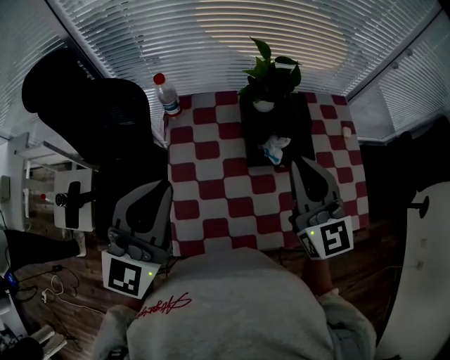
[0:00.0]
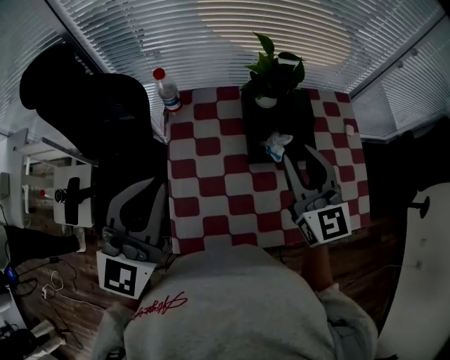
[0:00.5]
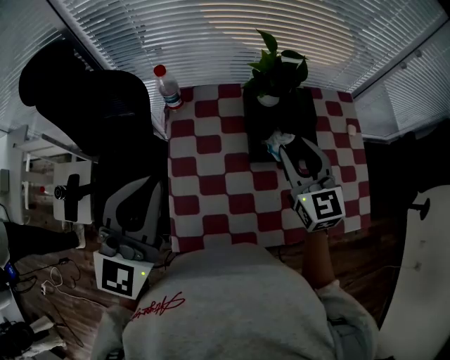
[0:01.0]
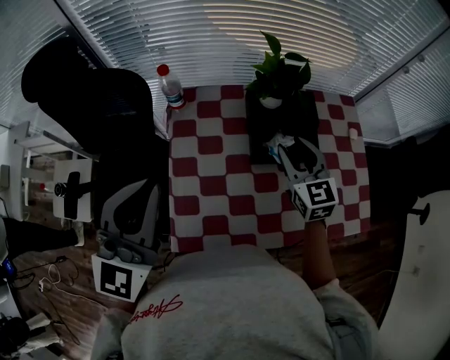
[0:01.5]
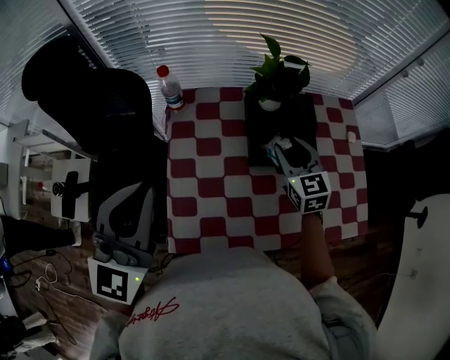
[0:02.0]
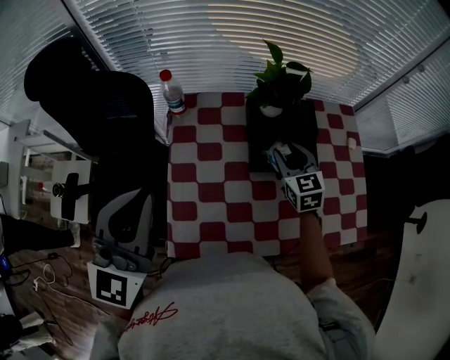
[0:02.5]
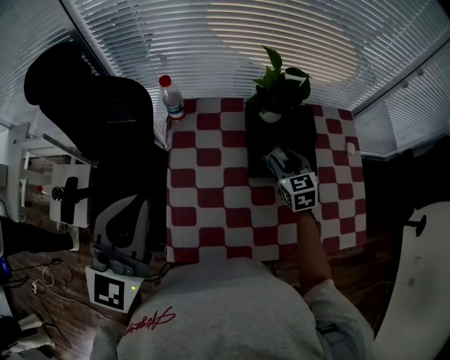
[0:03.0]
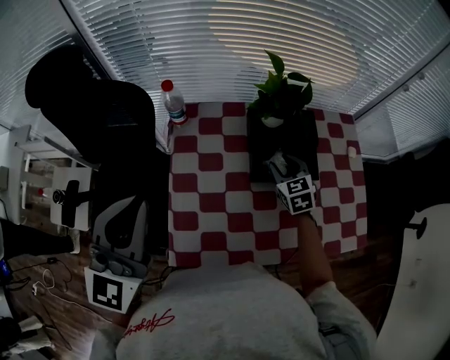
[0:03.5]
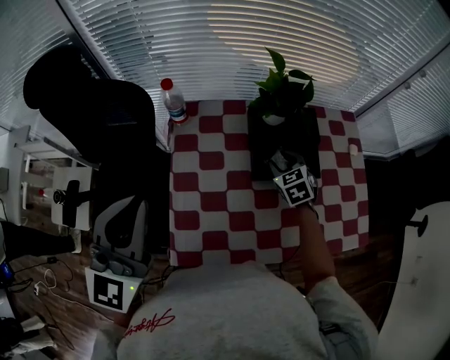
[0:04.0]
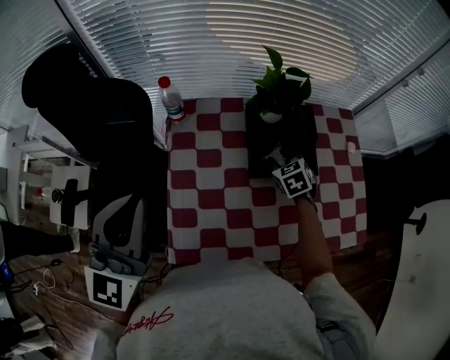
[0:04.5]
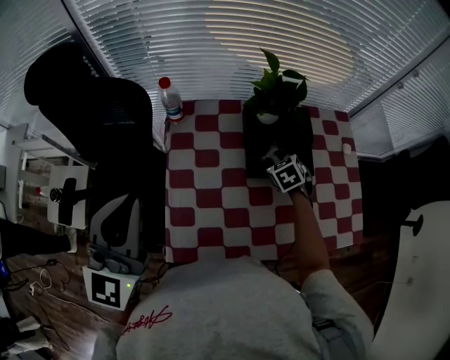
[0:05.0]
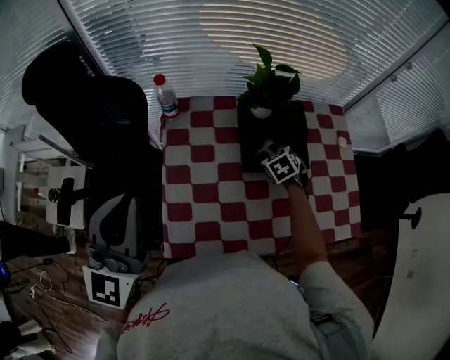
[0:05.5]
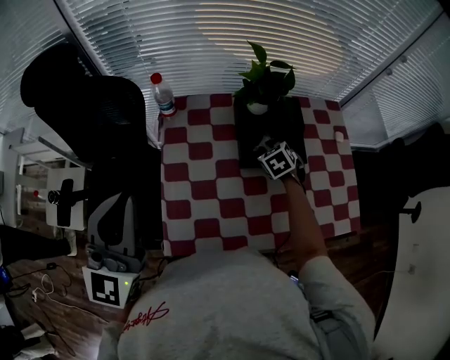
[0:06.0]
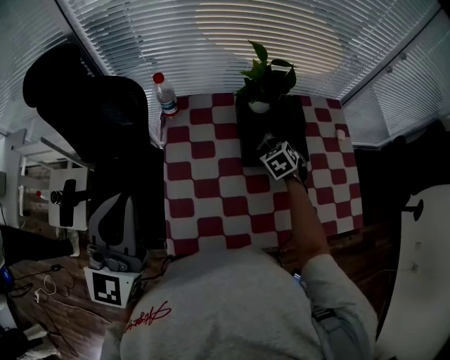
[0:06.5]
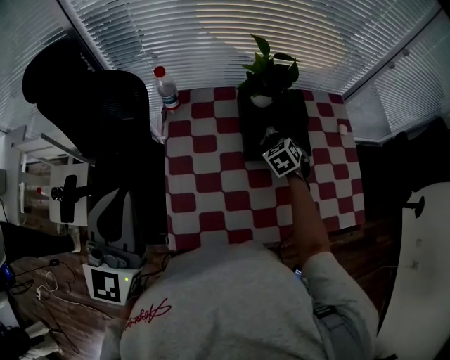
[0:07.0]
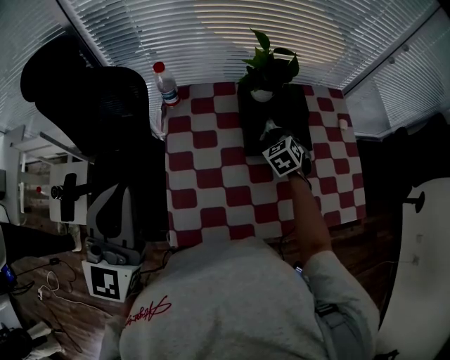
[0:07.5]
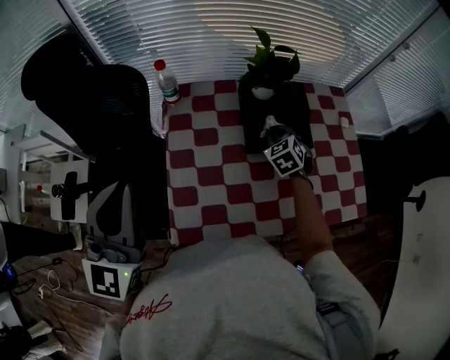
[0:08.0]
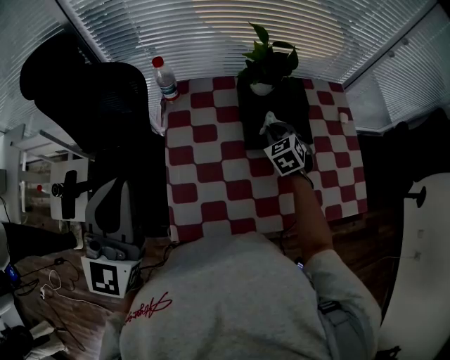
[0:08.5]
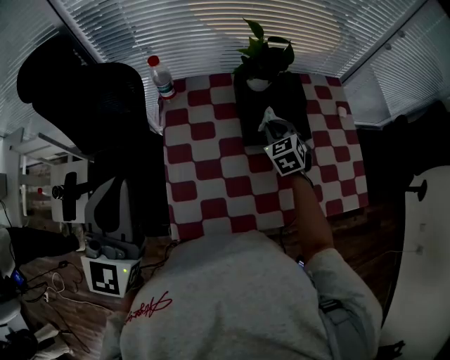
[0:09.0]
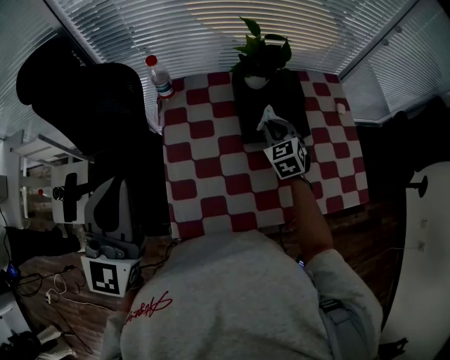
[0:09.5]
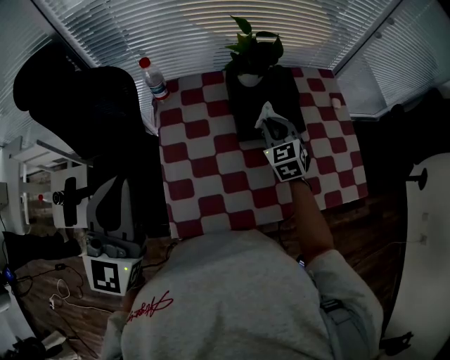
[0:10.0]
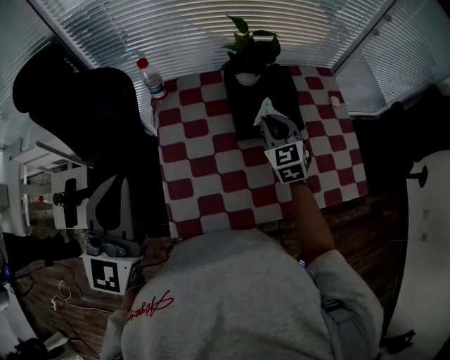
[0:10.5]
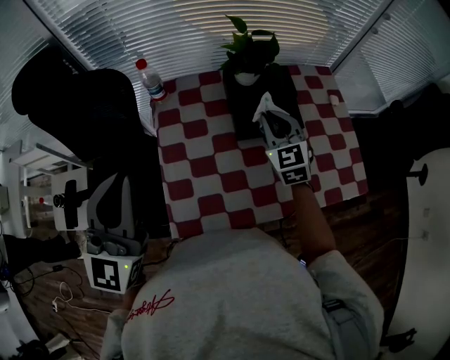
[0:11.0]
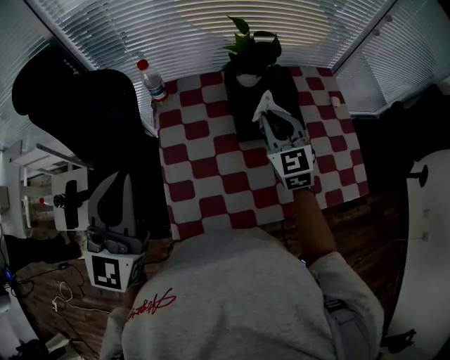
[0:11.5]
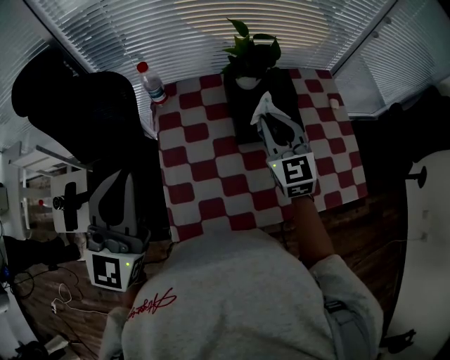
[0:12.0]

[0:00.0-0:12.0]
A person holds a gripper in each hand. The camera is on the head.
0:00.0 to 0:02.0: The right gripper is displaced downward and forward by some 20 cm, turns by approximately 20 degrees, and opens up.
0:02.0 to 0:04.0: The right gripper shifts roughly 10 cm downward, and swivels some 20 degrees.
0:04.0 to 0:08.0: There are only small adjustments of the grippers.
0:08.0 to 0:10.0: The right gripper heads upward, covering about 5 cm.
0:10.0 to 0:12.0: The right gripper travels upward by some 10 cm.

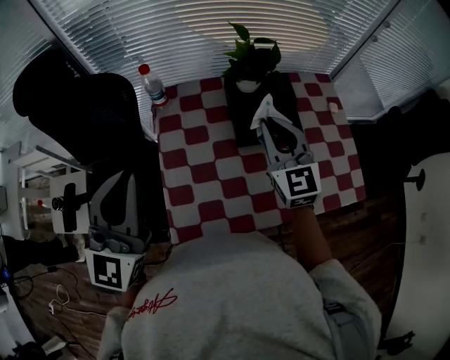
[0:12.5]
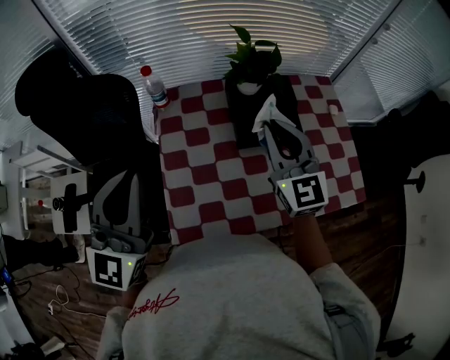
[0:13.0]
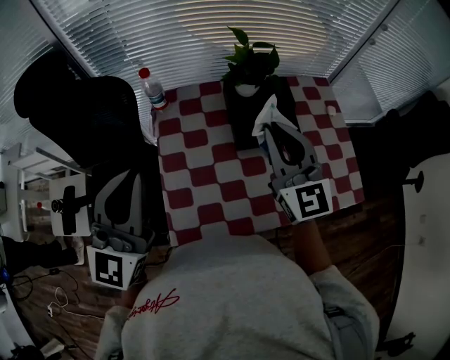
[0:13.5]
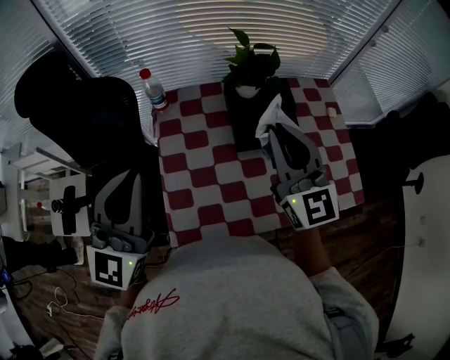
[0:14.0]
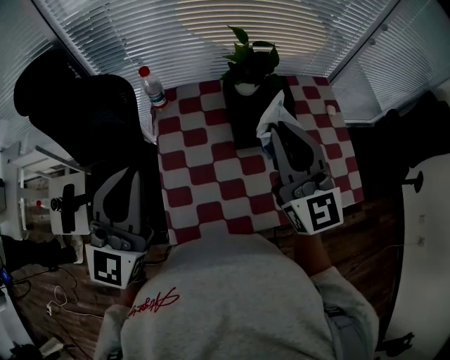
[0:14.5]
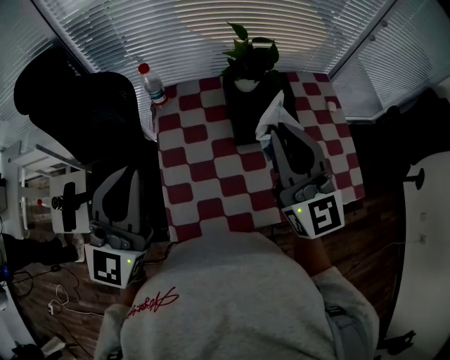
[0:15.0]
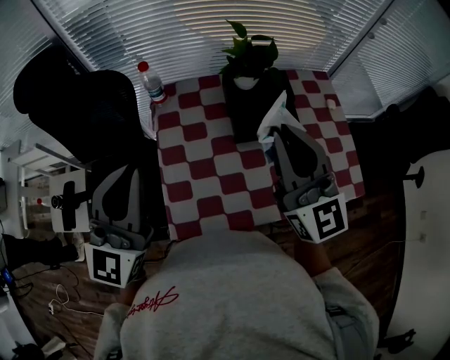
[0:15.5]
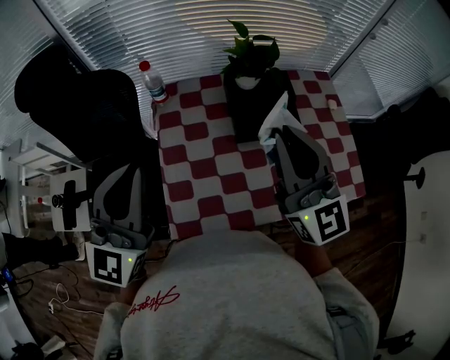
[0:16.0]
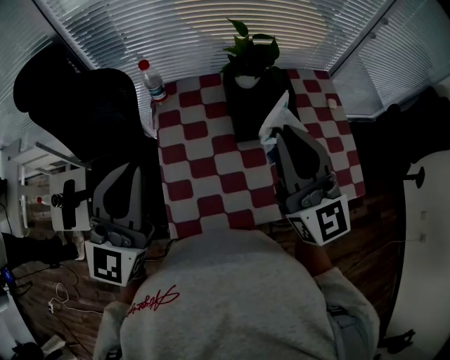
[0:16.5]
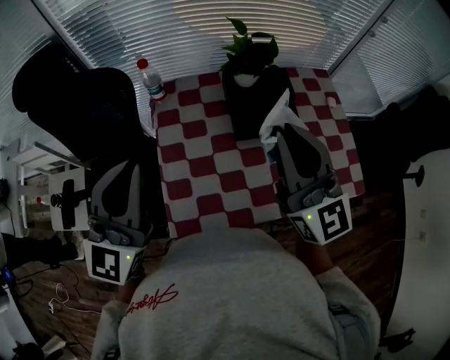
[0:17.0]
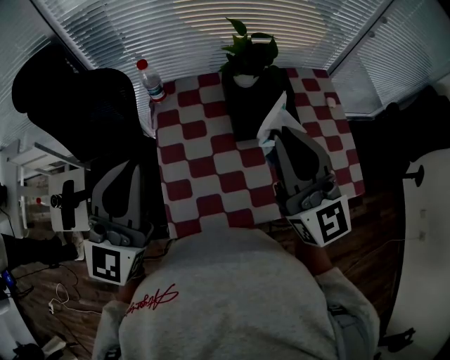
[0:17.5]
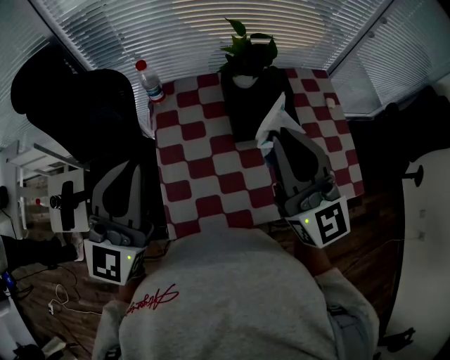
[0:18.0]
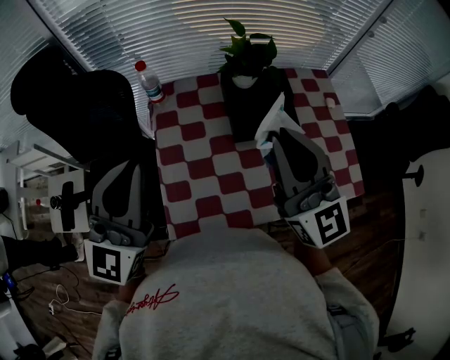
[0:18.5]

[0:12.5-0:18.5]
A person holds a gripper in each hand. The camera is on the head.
0:12.5 to 0:14.5: The right gripper is displaced upward and backward by approximately 10 cm.
0:14.5 to 0:16.5: The grippers make only small movements.
0:16.5 to 0:18.5: Both grippers stay about where they are.

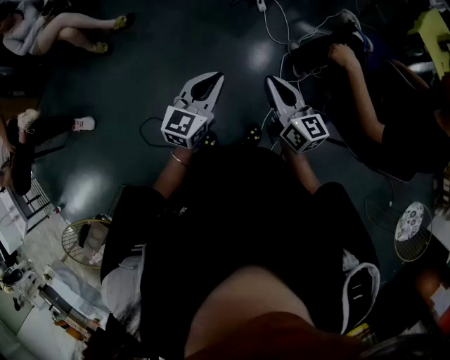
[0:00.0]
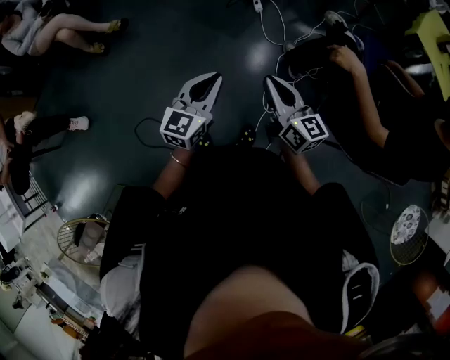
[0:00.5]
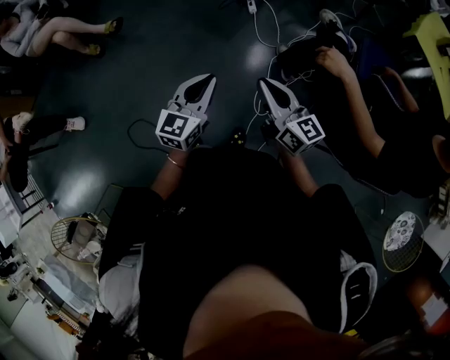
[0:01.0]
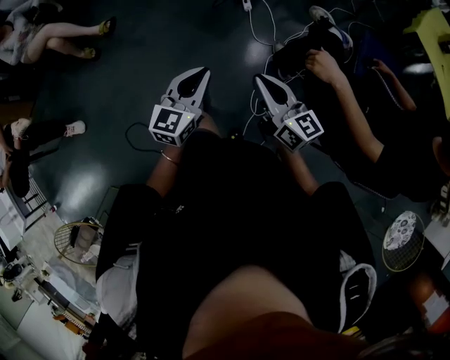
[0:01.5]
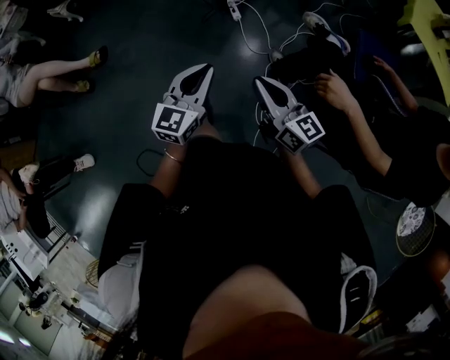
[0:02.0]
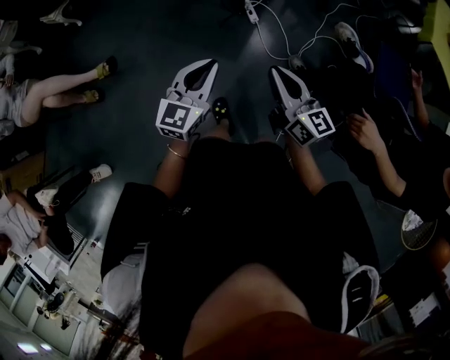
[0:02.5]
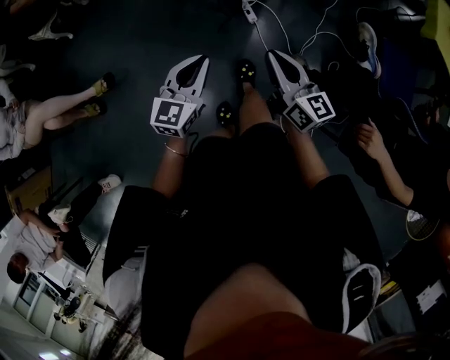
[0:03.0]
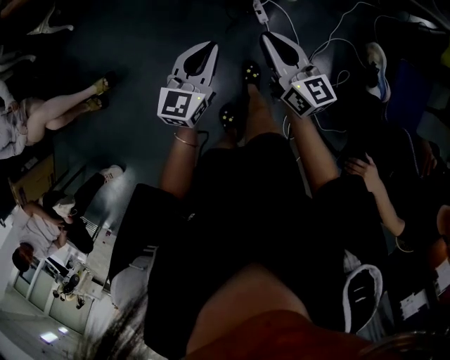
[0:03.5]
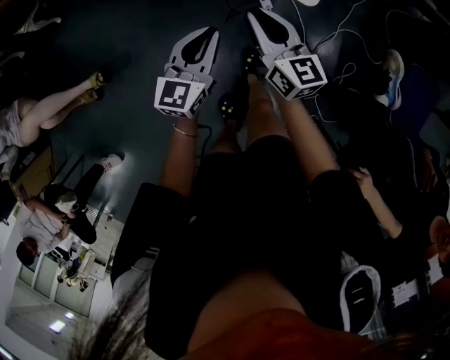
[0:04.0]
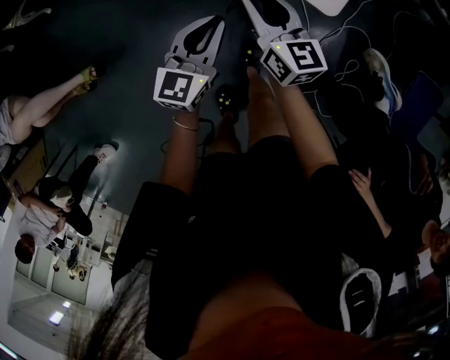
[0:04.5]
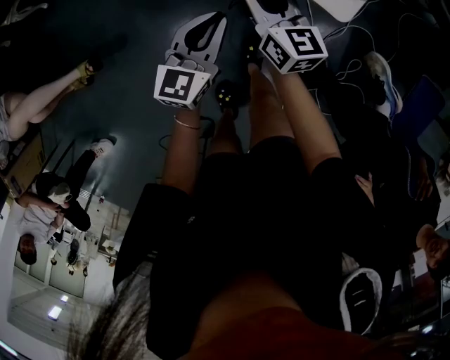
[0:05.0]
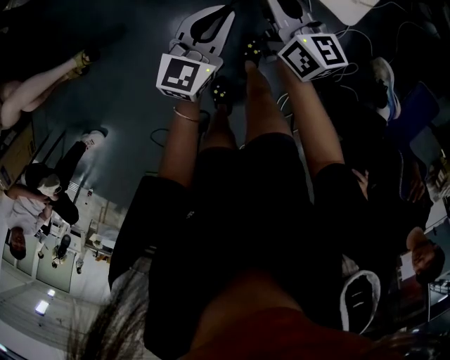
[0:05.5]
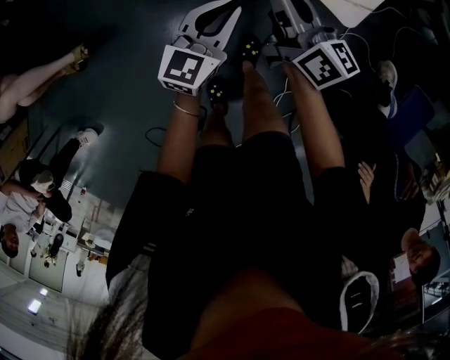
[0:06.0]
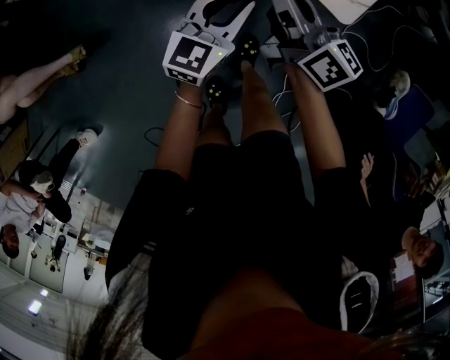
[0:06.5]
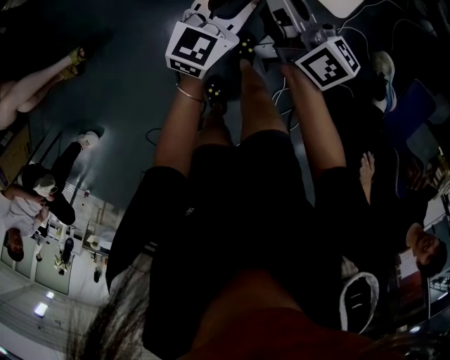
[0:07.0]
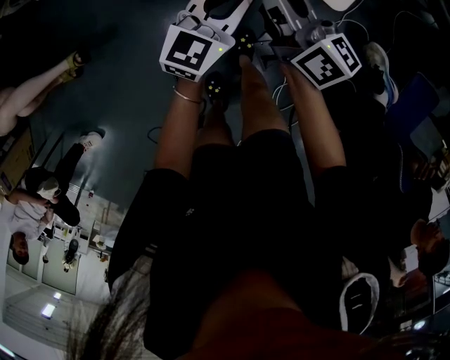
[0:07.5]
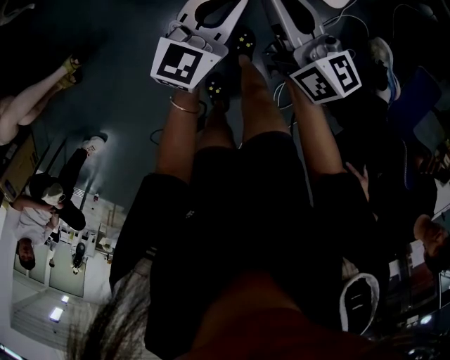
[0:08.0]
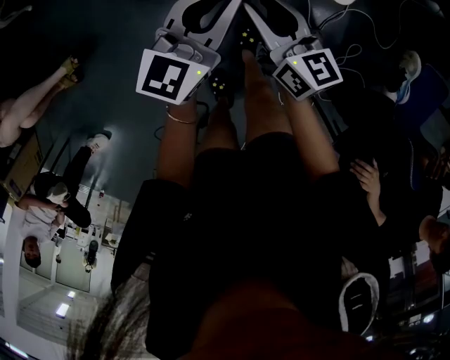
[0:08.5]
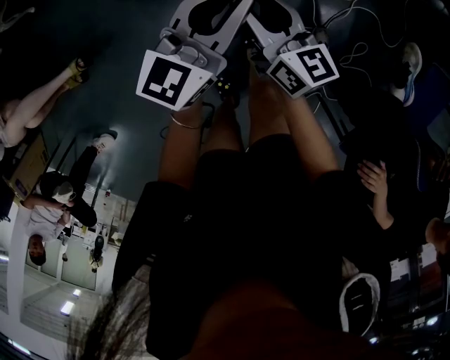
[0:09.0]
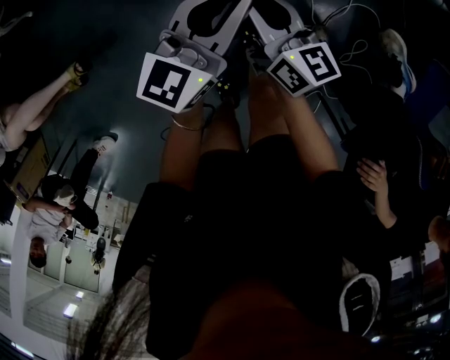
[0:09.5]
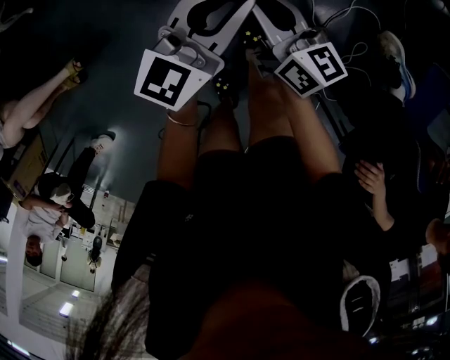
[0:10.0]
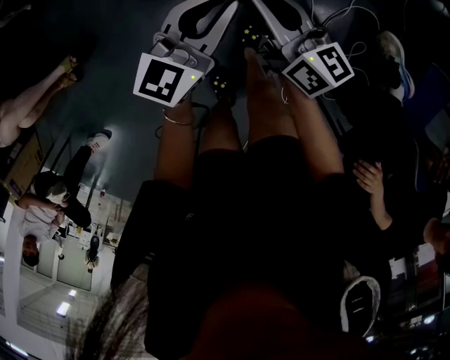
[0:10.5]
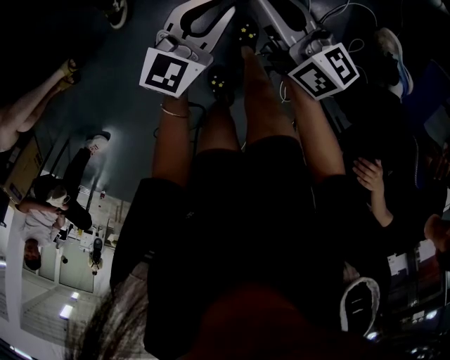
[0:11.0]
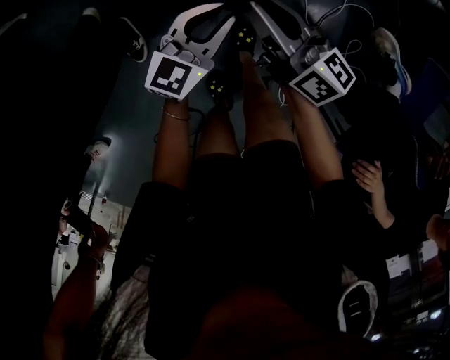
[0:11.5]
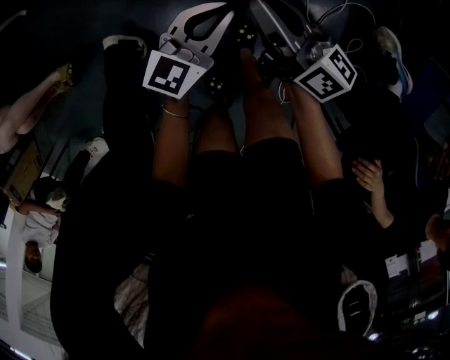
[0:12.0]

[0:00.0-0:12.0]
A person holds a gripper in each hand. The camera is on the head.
0:00.0 to 0:02.0: Both grippers move forward and to the right, about 20 cm.
0:02.0 to 0:04.0: Both grippers are carried forward, about 50 cm.
0:04.0 to 0:06.0: The left gripper ends up about 5 cm from where it was; the right gripper goes about 5 cm forward, and changes its angle by some 20 degrees.
0:06.0 to 0:08.0: The right gripper ends up approximately 5 cm from where it was. The left gripper heads to the right, covering approximately 5 cm.
0:08.0 to 0:10.0: The right gripper heads downward, covering approximately 5 cm.
0:10.0 to 0:12.0: The left gripper moves downward, approximately 10 cm.
